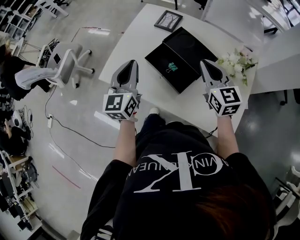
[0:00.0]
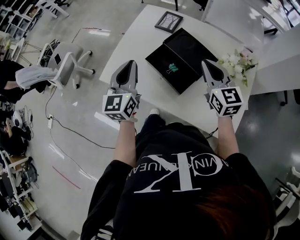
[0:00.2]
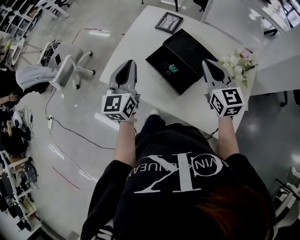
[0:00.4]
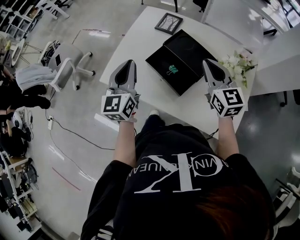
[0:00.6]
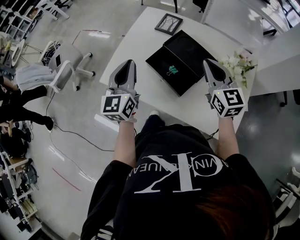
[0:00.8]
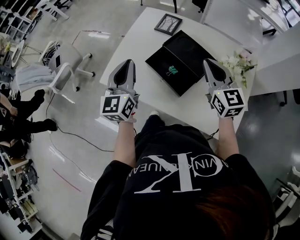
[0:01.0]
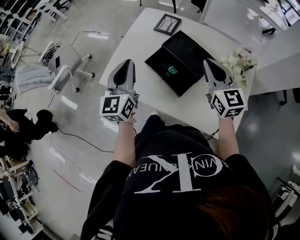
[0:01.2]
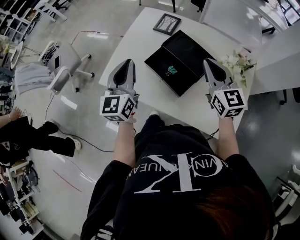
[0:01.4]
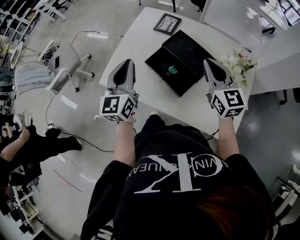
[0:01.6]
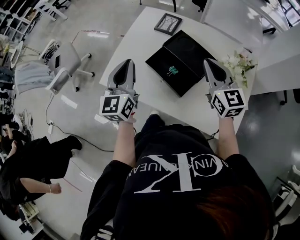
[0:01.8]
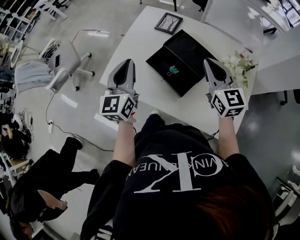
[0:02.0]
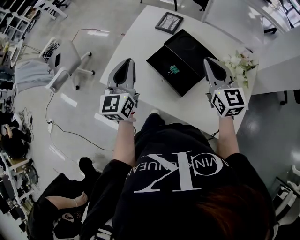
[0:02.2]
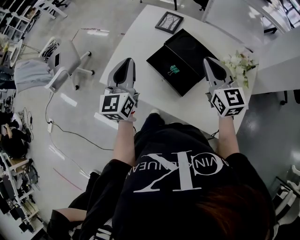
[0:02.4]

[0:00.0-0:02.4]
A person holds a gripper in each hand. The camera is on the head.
0:00.0 to 0:02.4: There are only small adjustments of the grippers.

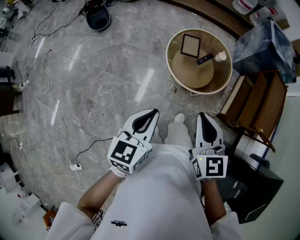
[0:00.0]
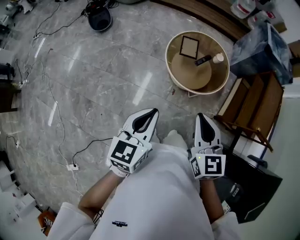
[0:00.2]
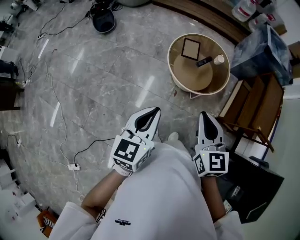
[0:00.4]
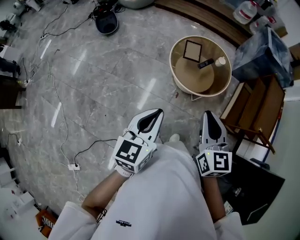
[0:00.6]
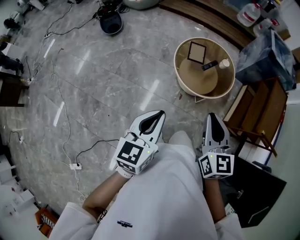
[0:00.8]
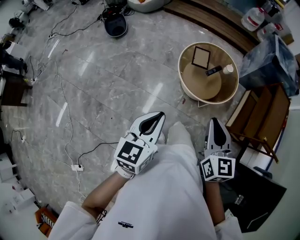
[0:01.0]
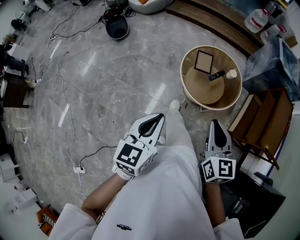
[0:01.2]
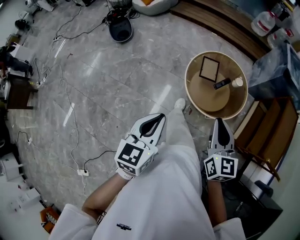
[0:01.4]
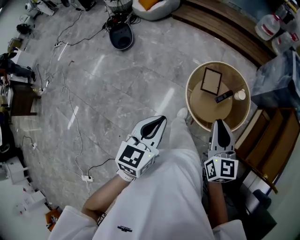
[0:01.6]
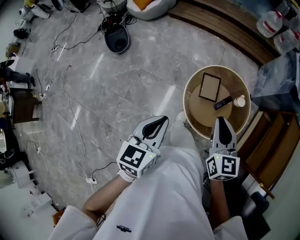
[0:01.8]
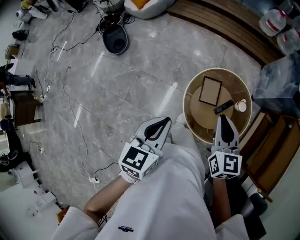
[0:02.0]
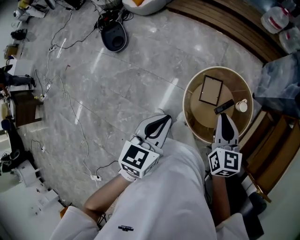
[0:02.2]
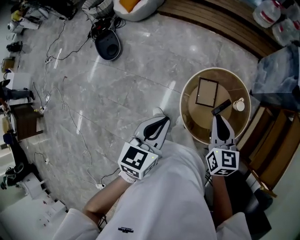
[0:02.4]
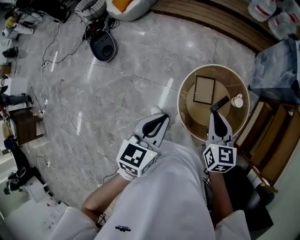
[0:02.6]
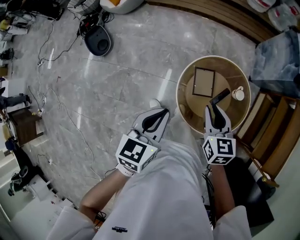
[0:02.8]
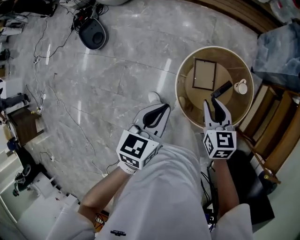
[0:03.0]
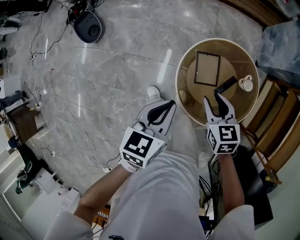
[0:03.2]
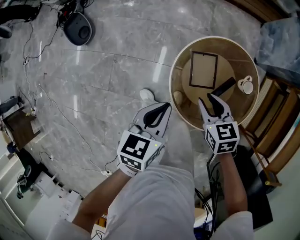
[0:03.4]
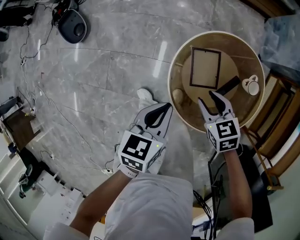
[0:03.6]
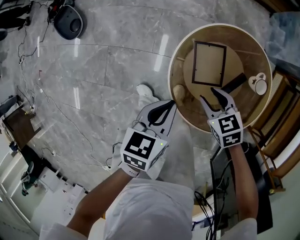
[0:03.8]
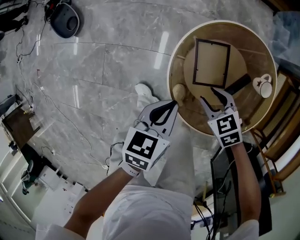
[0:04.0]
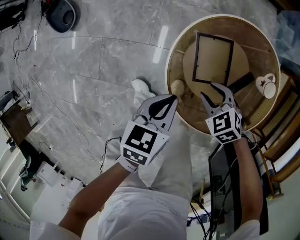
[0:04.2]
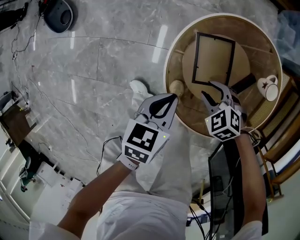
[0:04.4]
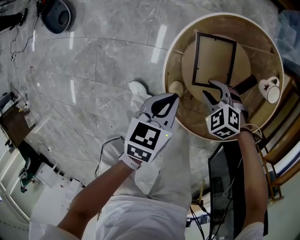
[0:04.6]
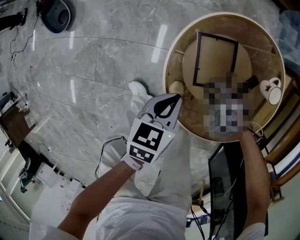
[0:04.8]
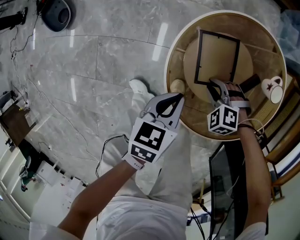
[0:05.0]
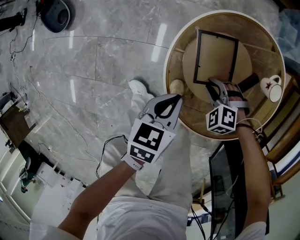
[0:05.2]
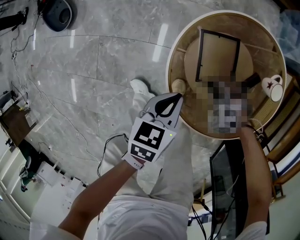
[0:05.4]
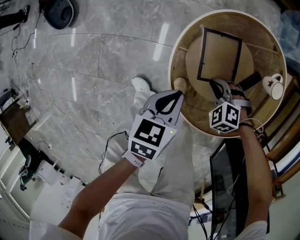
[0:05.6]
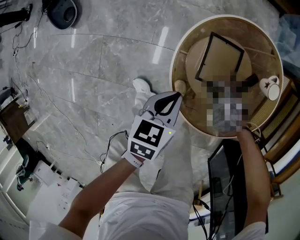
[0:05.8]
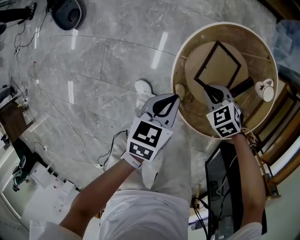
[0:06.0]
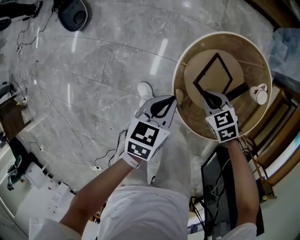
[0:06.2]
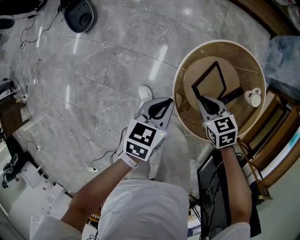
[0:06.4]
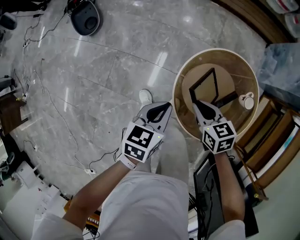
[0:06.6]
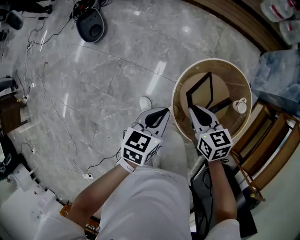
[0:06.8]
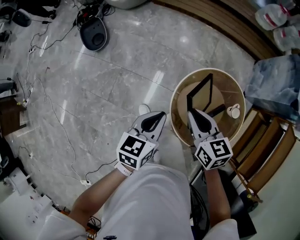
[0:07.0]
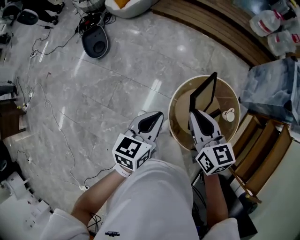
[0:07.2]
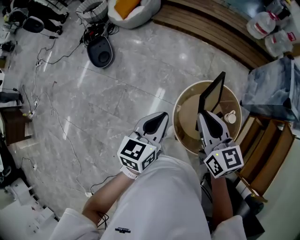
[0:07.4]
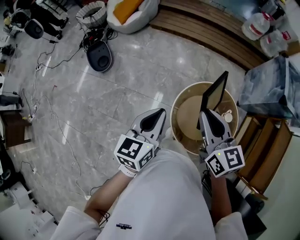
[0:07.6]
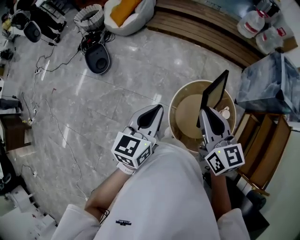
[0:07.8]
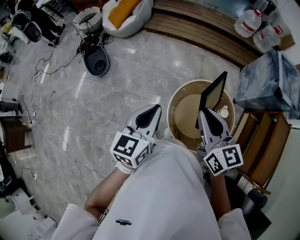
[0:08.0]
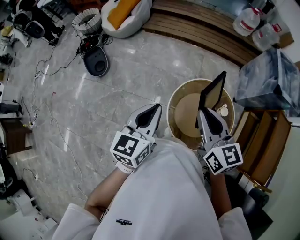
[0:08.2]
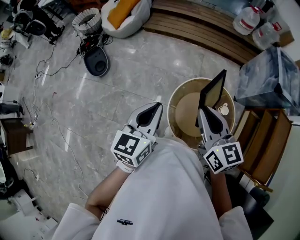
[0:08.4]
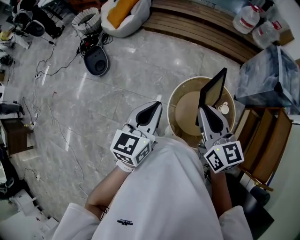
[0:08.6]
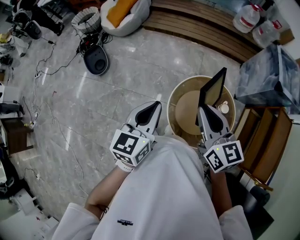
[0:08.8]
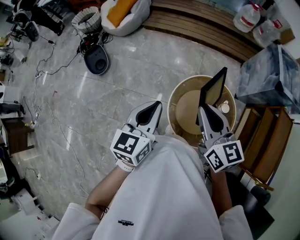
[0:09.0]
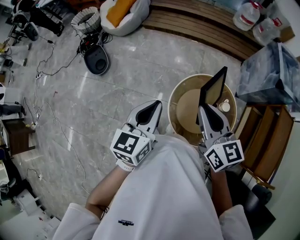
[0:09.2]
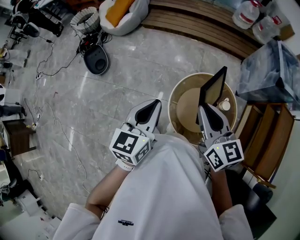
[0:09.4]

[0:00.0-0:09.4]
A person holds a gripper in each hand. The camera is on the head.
0:00.0 to 0:01.6: Both grippers travel together forward, about 20 cm.
0:01.6 to 0:03.2: Both grippers travel together forward and downward, some 35 cm. The left gripper changes its angle by about 20 degrees; the right gripper changes its angle by roughly 30 degrees, and opens up.
0:03.2 to 0:04.8: The two grippers go some 35 cm downward. The right gripper twists about 50 degrees counterclockwise, seen from behind.
0:04.8 to 0:06.2: The right gripper shifts roughly 10 cm upward, swivels some 40 degrees, and closes its fingers; the left gripper shifts roughly 10 cm upward and to the left.
0:06.2 to 0:07.8: Both grippers move upward, about 50 cm. The left gripper swivels some 30 degrees. The right gripper points its fingers roughly 40 degrees further upward.
0:07.8 to 0:09.4: The grippers stay close to where they were, moving slightly.

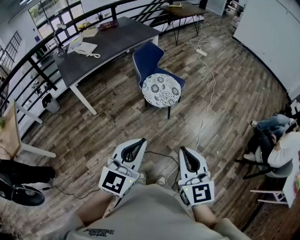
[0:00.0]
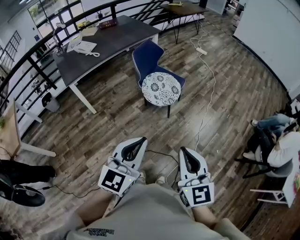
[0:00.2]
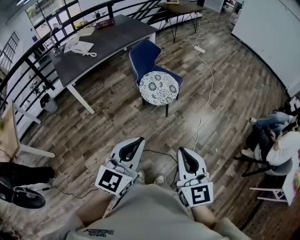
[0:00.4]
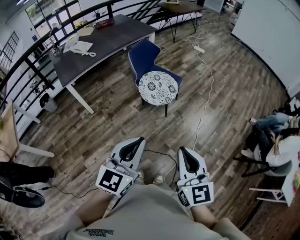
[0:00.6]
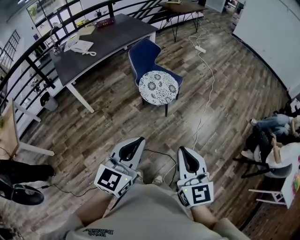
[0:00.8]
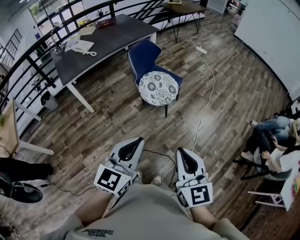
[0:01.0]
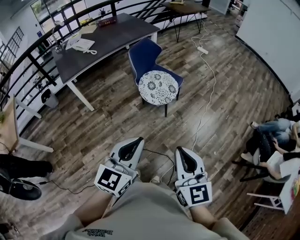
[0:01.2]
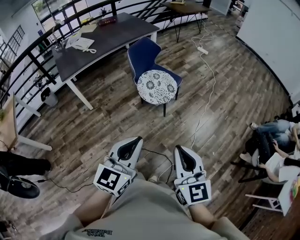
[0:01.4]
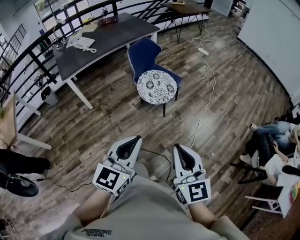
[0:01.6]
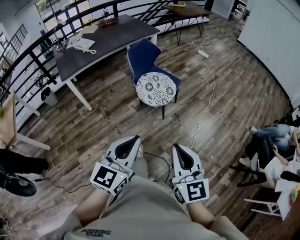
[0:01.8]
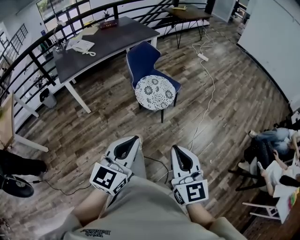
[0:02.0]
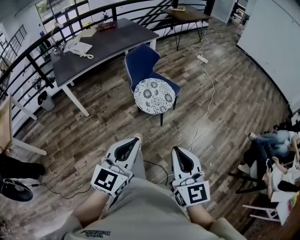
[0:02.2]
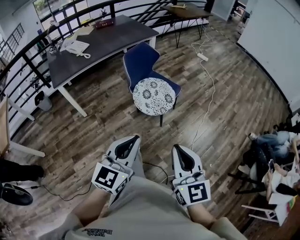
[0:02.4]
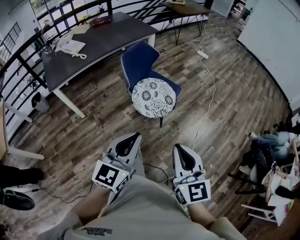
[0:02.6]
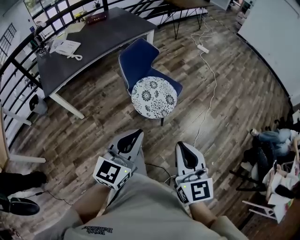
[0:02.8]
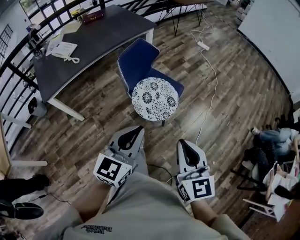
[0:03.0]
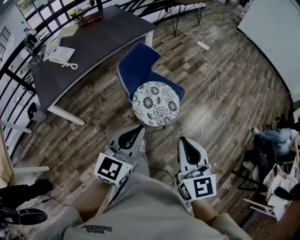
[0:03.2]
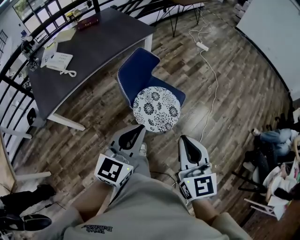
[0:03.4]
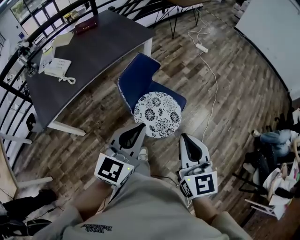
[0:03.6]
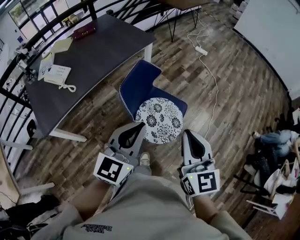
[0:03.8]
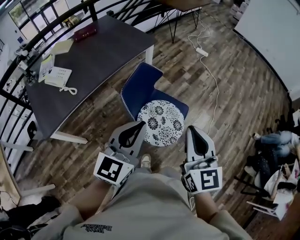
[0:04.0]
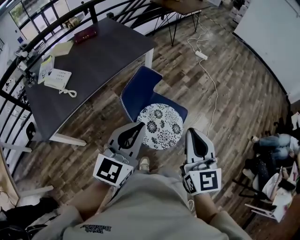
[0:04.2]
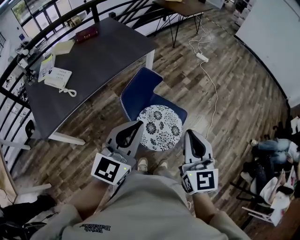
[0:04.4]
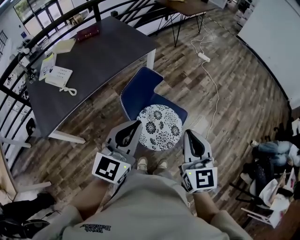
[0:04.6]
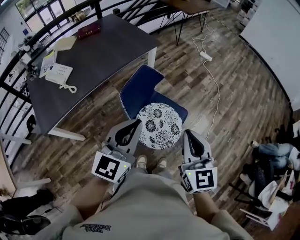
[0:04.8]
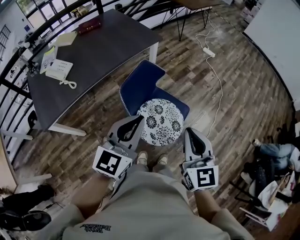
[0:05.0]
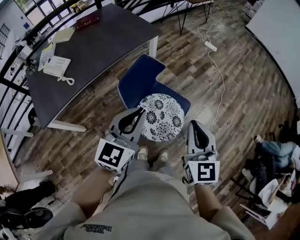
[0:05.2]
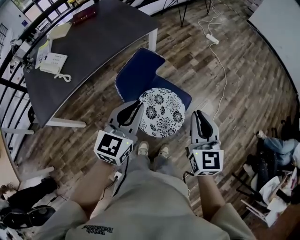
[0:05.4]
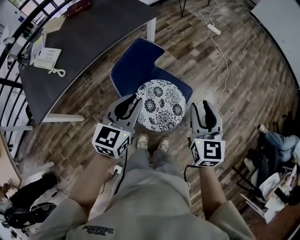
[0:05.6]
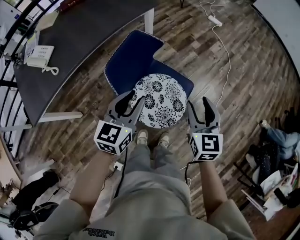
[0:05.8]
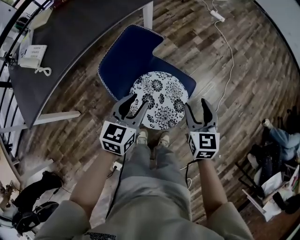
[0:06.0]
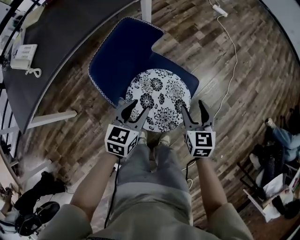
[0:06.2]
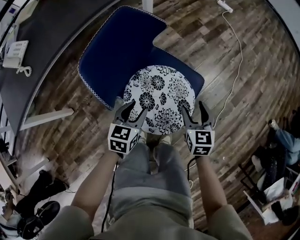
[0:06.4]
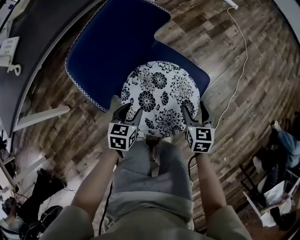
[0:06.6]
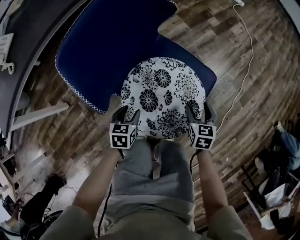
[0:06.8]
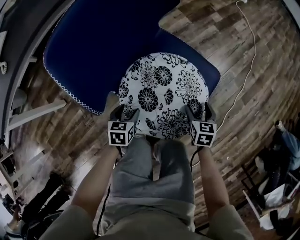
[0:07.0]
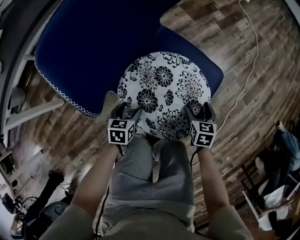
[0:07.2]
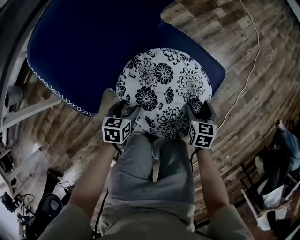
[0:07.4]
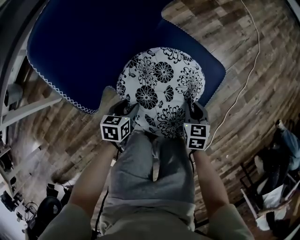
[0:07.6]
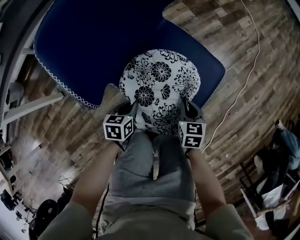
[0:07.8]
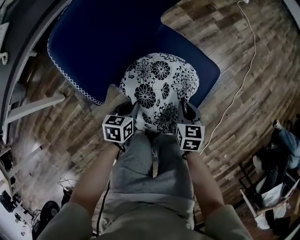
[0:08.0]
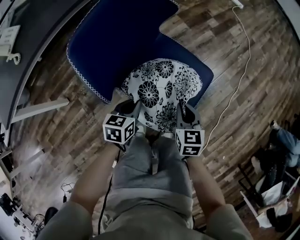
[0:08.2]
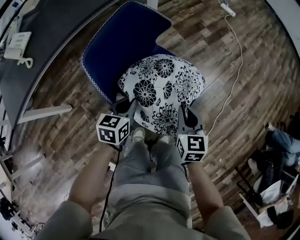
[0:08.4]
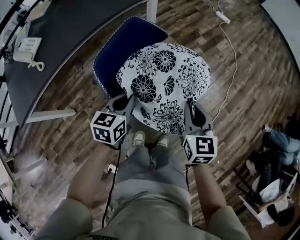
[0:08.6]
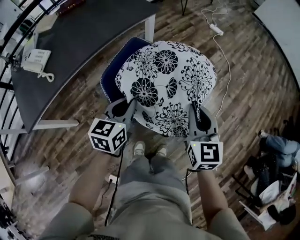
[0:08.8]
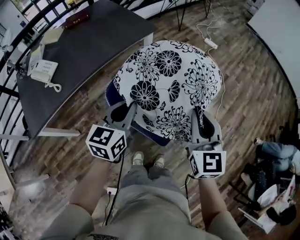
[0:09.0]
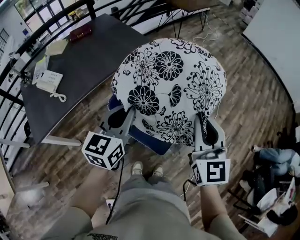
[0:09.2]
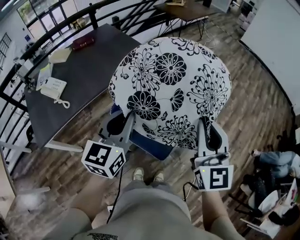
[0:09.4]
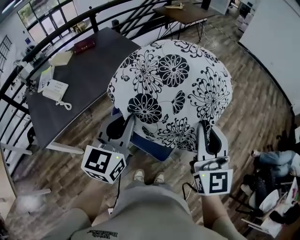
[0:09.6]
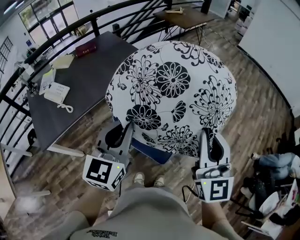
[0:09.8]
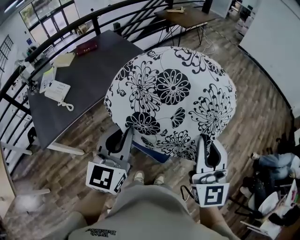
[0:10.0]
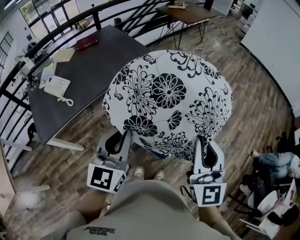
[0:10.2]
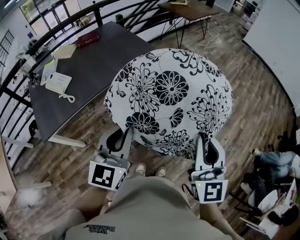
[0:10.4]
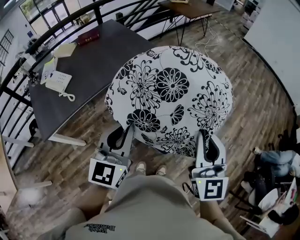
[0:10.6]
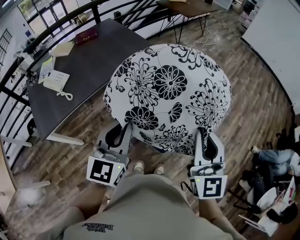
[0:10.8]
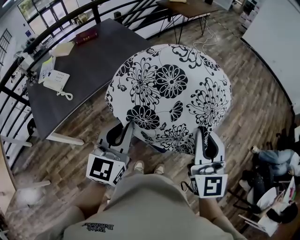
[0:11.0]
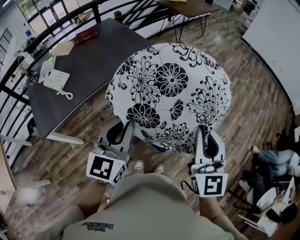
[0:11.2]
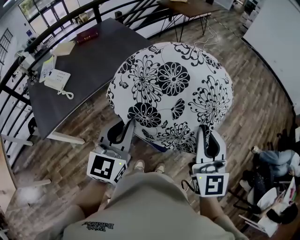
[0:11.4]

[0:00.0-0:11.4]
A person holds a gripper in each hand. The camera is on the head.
0:00.0 to 0:01.4: Both grippers move to the right, about 5 cm.
0:01.4 to 0:02.8: Both grippers move forward, roughly 25 cm.
0:02.8 to 0:04.2: The right gripper moves forward, about 30 cm, while the left gripper travels forward and to the left by roughly 30 cm.
0:04.2 to 0:05.6: The right gripper heads downward, forward and to the right, covering some 20 cm, and opens. Meanwhile the left gripper shifts approximately 15 cm downward and forward.
0:05.6 to 0:07.2: The grippers both shift downward by roughly 60 cm. The left gripper tips its fingers downward by approximately 40 degrees, and opens; the right gripper angles its fingers downward, by about 40 degrees, and opens up.
0:07.2 to 0:08.6: The two grippers go approximately 40 cm upward. The left gripper turns by about 20 degrees, and closes up. The right gripper swivels some 30 degrees, and closes.
0:08.6 to 0:10.0: Both grippers move upward, approximately 40 cm. The right gripper angles its fingers upward, by some 30 degrees. The left gripper rotates approximately 40 degrees.
0:10.0 to 0:11.4: There are only small adjustments of the grippers.
